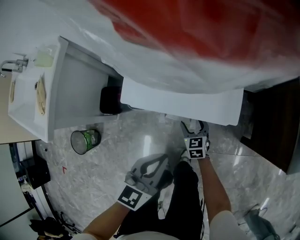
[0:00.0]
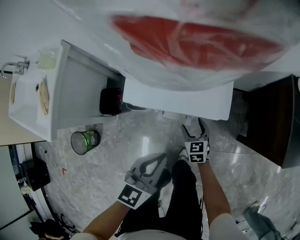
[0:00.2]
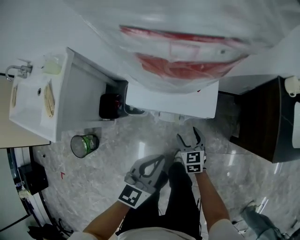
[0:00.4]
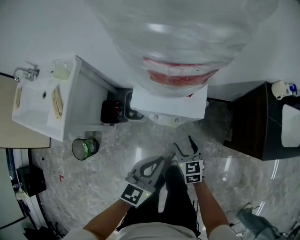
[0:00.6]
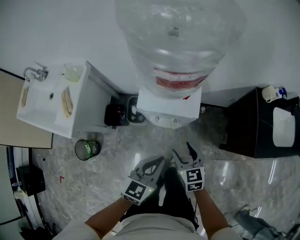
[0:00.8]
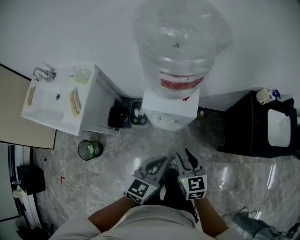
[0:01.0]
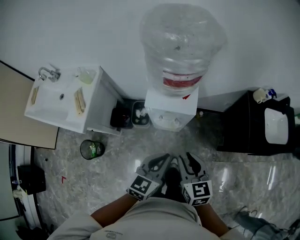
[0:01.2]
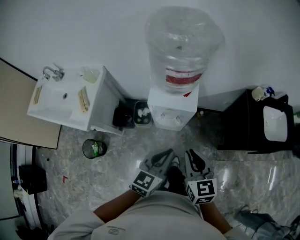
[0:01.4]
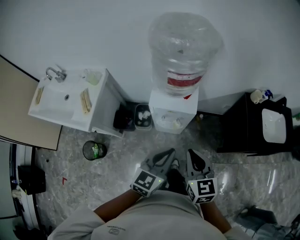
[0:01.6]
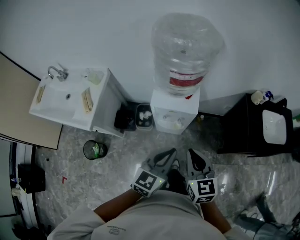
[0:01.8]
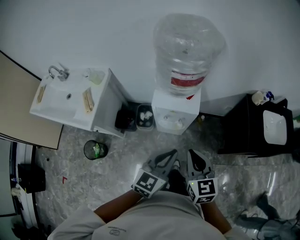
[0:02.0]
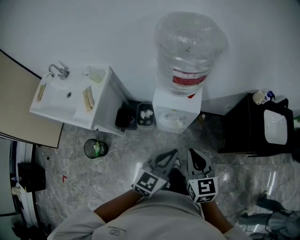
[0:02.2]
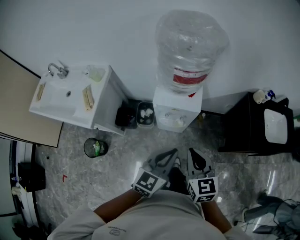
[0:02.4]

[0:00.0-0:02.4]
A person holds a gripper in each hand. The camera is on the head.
0.0 to 1.2 s: The left gripper goes roughly 25 cm upward. The right gripper travels upward by about 50 cm, and closes its fingers.
1.2 to 2.4 s: The grippers both shift upward by some 5 cm. The right gripper closes up.

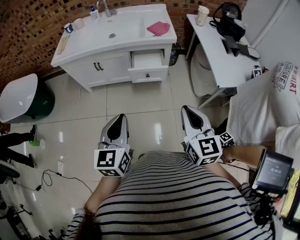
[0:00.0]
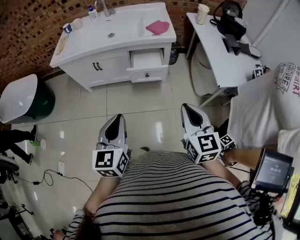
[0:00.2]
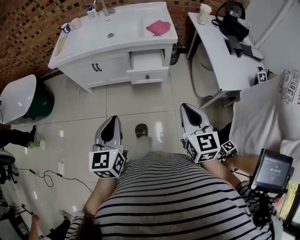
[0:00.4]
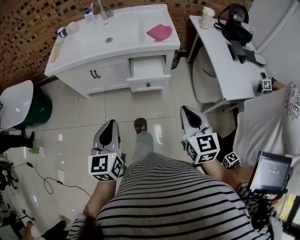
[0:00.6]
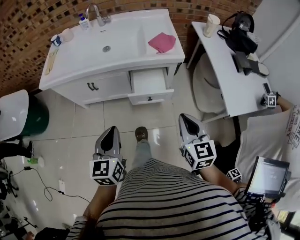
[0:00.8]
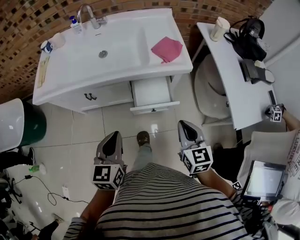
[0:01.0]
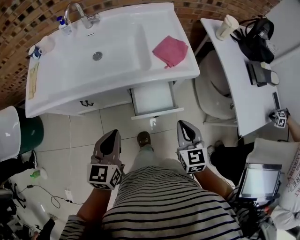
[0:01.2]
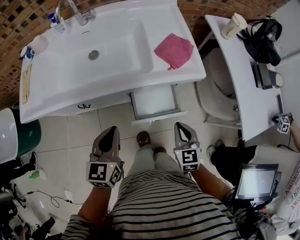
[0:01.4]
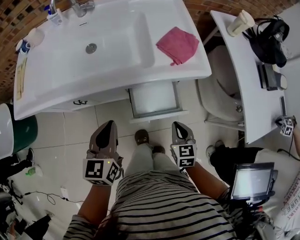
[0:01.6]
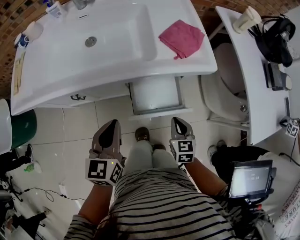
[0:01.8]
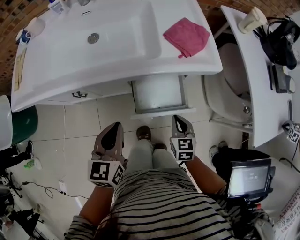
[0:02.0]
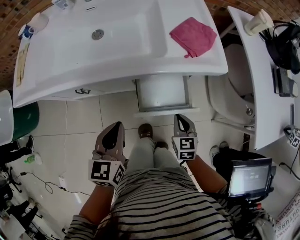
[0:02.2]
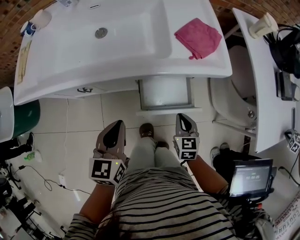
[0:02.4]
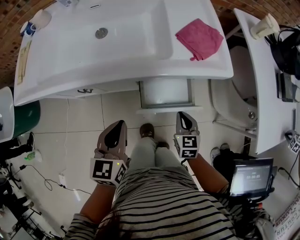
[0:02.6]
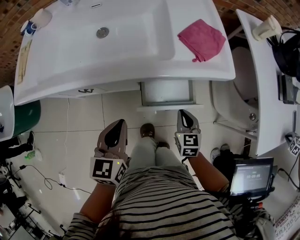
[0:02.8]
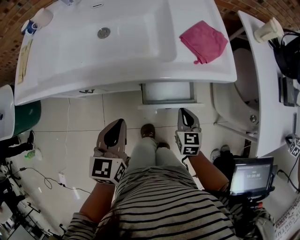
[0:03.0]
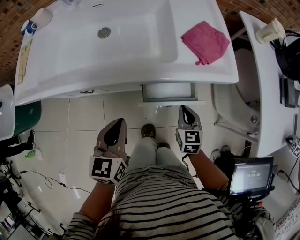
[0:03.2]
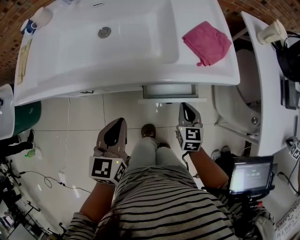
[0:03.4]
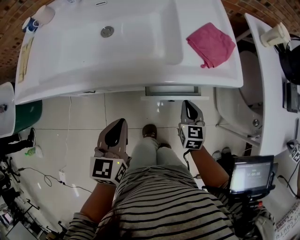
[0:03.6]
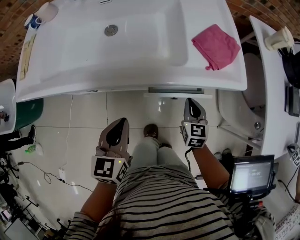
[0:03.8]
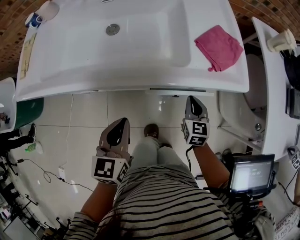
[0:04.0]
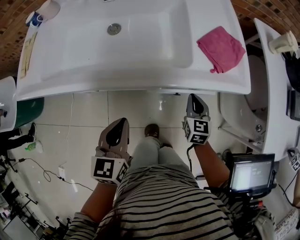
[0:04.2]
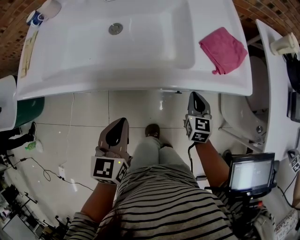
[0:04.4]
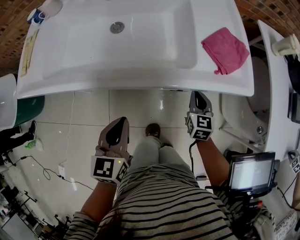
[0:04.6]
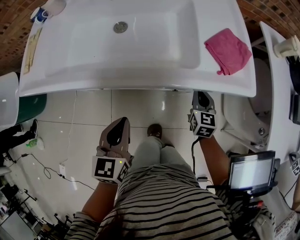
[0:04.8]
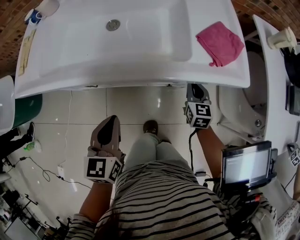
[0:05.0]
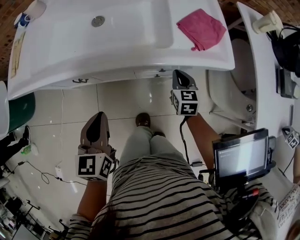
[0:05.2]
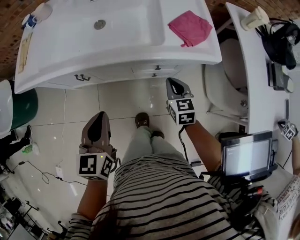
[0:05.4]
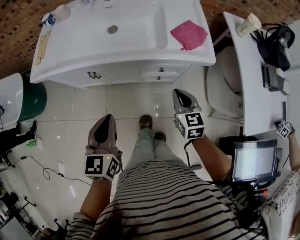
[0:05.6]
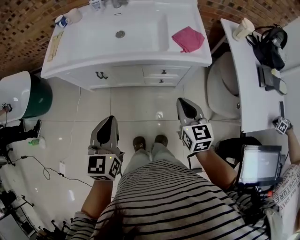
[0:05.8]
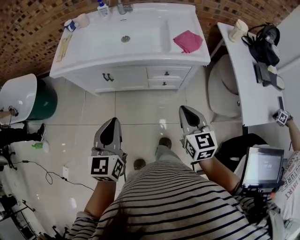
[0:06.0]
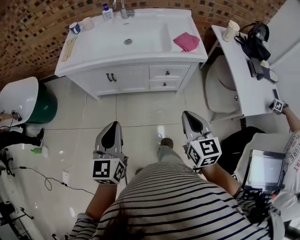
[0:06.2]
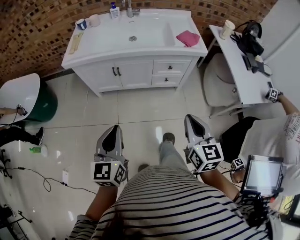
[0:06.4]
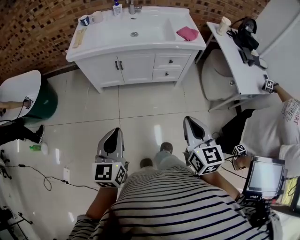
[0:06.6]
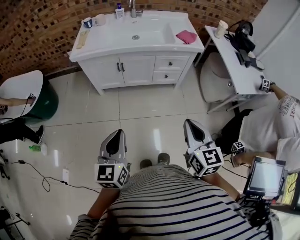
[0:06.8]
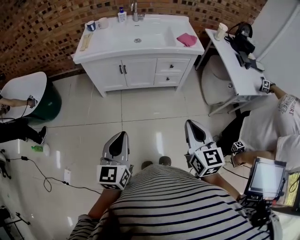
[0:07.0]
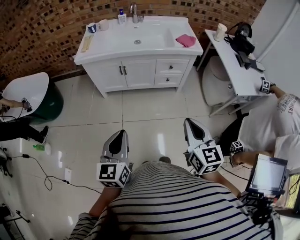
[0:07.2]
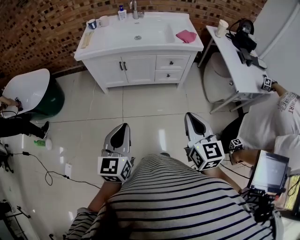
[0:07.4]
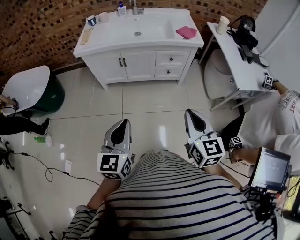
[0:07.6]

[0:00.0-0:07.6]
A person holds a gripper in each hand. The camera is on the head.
0.0 to 1.6 s: The two grippers go roughly 50 cm forward and downward. The right gripper swivels approximately 30 degrees.
1.6 to 3.0 s: The left gripper goes some 5 cm downward. Meanwhile the right gripper shifts some 10 cm forward and downward.
3.0 to 4.6 s: The right gripper heads forward, covering approximately 10 cm.
4.6 to 6.0 s: The grippers both shift backward and upward by approximately 35 cm.
6.0 to 7.6 s: The two grippers go some 30 cm backward.

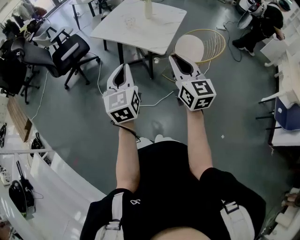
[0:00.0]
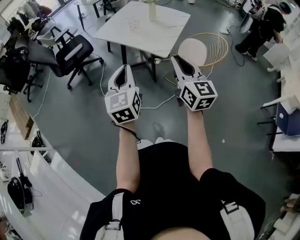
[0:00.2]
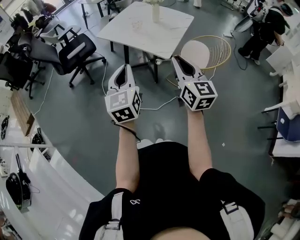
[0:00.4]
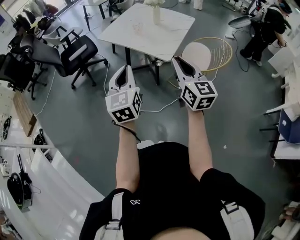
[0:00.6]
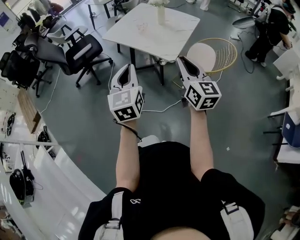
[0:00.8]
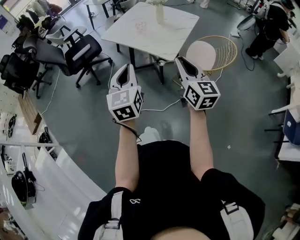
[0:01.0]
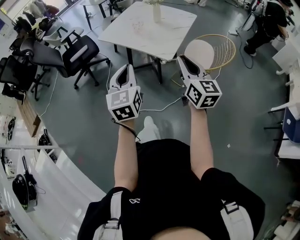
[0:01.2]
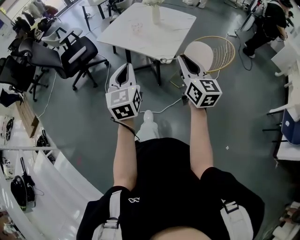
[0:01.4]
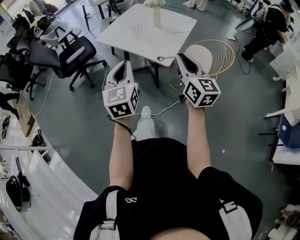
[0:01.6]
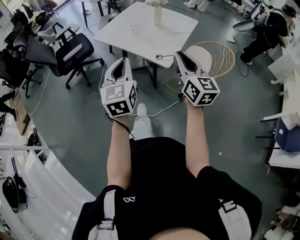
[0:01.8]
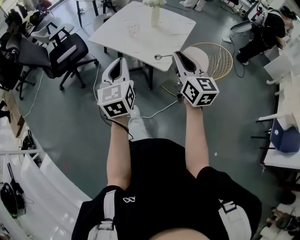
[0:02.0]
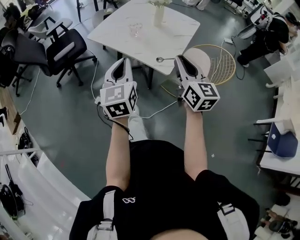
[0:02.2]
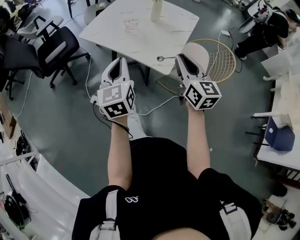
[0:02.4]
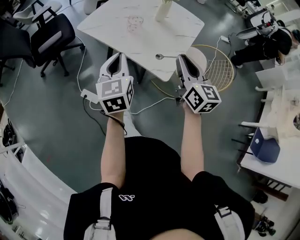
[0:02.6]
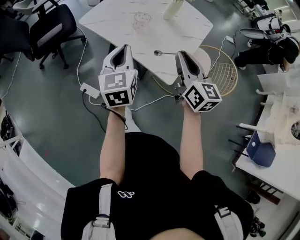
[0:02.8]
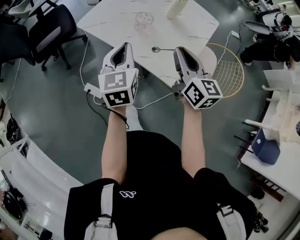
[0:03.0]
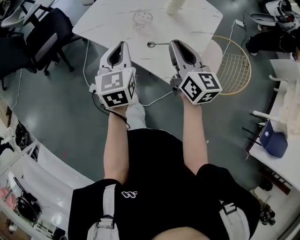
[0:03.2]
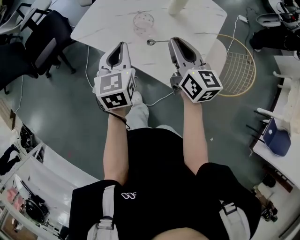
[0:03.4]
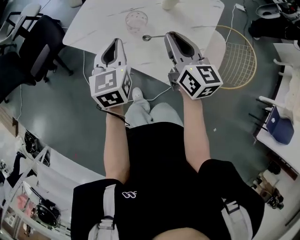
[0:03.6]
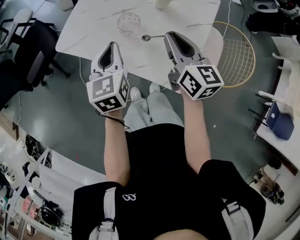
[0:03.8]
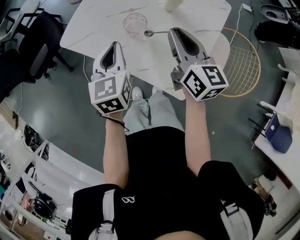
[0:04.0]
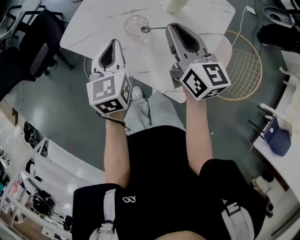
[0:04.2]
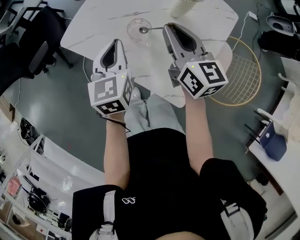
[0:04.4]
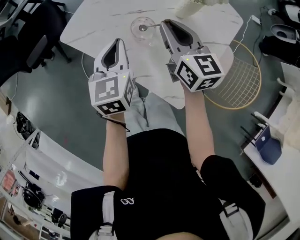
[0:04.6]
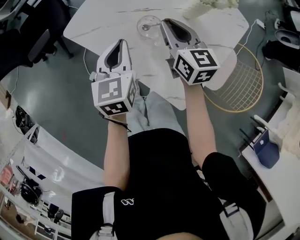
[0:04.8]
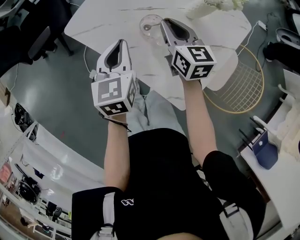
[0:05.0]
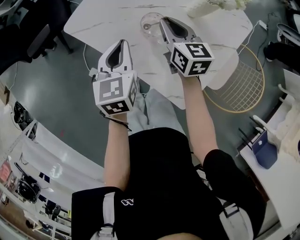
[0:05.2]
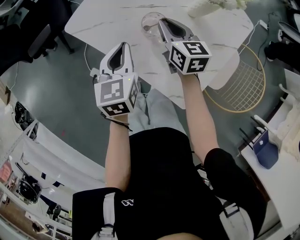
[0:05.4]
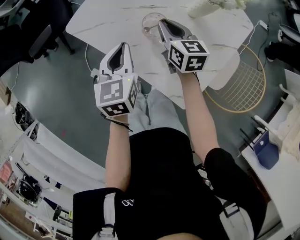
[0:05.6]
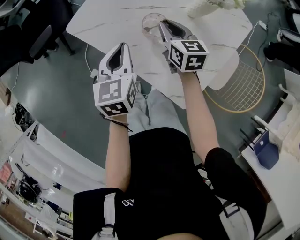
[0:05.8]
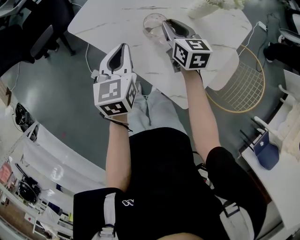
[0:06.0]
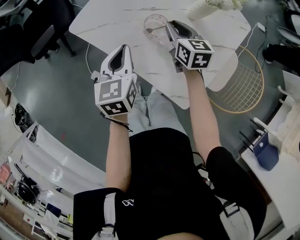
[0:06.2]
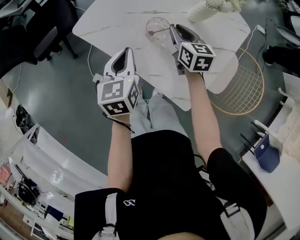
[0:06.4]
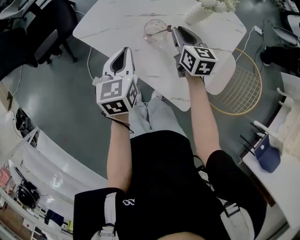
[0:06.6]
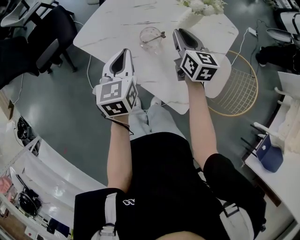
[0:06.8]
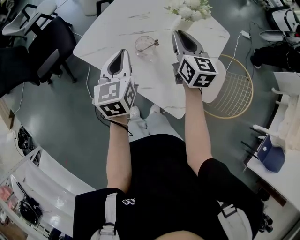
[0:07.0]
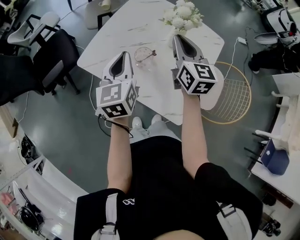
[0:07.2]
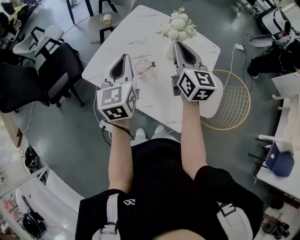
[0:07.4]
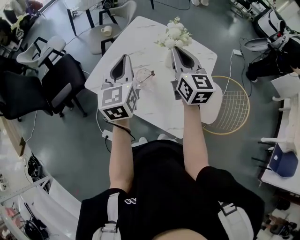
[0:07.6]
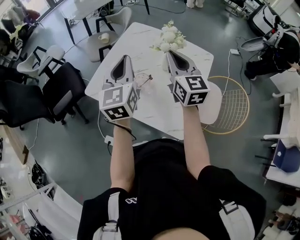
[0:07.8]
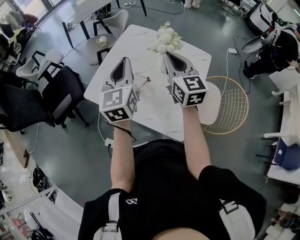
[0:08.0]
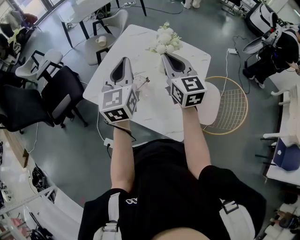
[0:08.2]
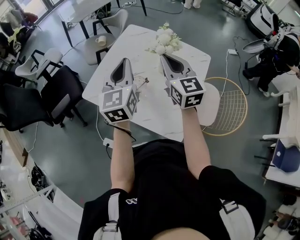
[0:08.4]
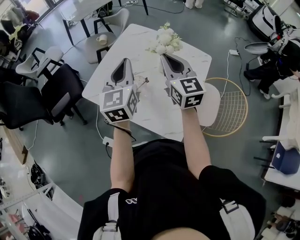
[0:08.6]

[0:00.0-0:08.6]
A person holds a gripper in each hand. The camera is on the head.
0.0 to 1.4 s: The left gripper shifts roughly 5 cm forward; the right gripper travels forward and to the right by roughly 10 cm.
1.4 to 2.8 s: The two grippers go roughly 30 cm forward.
2.8 to 4.4 s: Both grippers move forward, some 20 cm.
4.4 to 5.8 s: The left gripper ends up roughly 5 cm from where it was, while the right gripper moves downward, about 15 cm.
5.8 to 7.2 s: The left gripper goes some 15 cm upward. The right gripper heads upward, covering approximately 20 cm, and swivels roughly 30 degrees.
7.2 to 8.6 s: The left gripper moves upward and to the right, approximately 10 cm; the right gripper is displaced upward by some 5 cm.

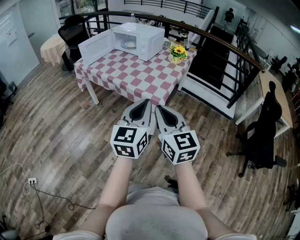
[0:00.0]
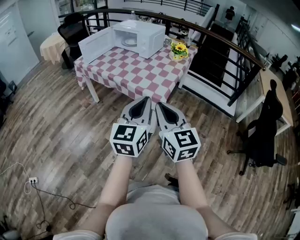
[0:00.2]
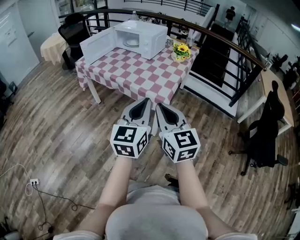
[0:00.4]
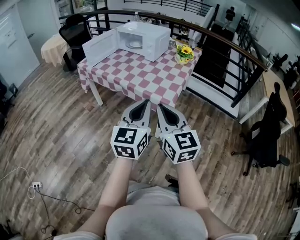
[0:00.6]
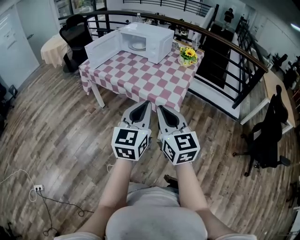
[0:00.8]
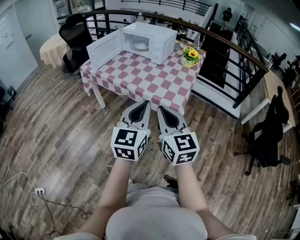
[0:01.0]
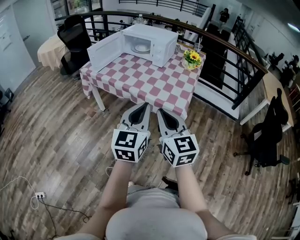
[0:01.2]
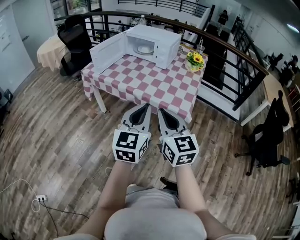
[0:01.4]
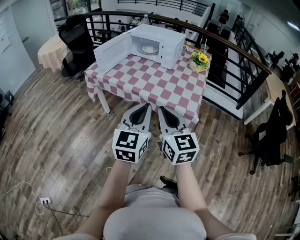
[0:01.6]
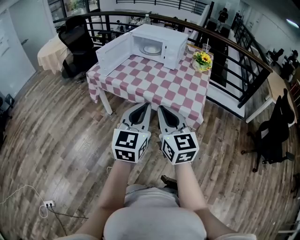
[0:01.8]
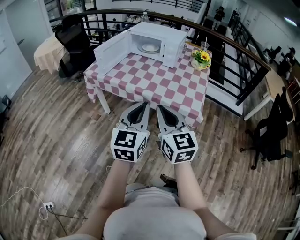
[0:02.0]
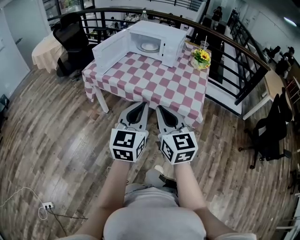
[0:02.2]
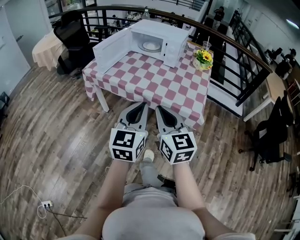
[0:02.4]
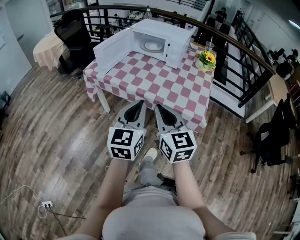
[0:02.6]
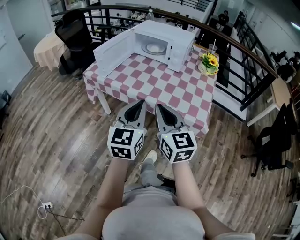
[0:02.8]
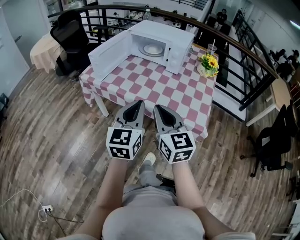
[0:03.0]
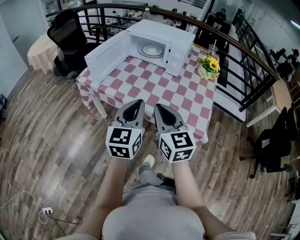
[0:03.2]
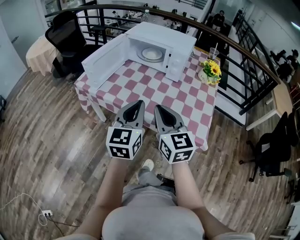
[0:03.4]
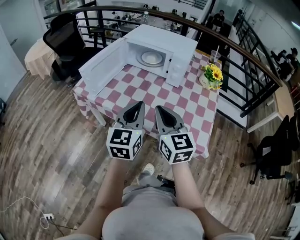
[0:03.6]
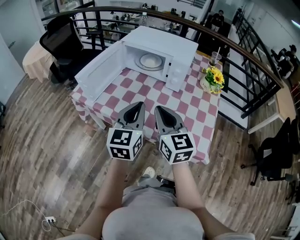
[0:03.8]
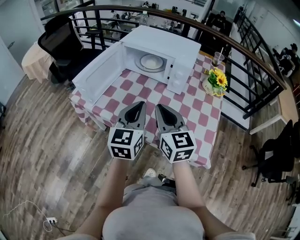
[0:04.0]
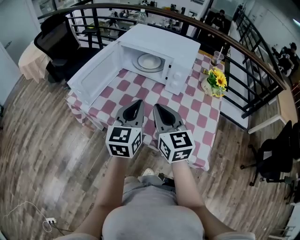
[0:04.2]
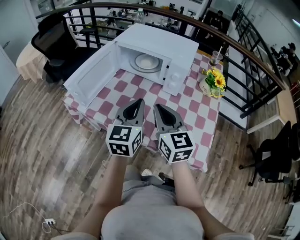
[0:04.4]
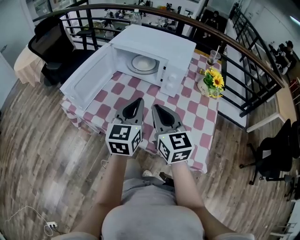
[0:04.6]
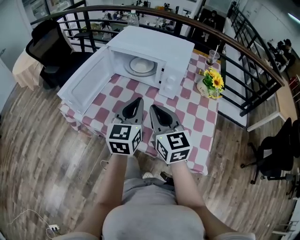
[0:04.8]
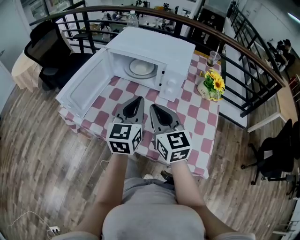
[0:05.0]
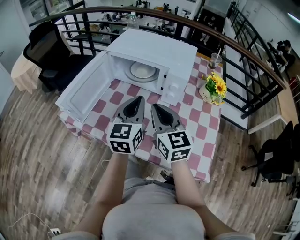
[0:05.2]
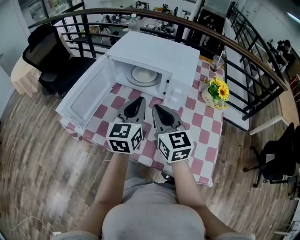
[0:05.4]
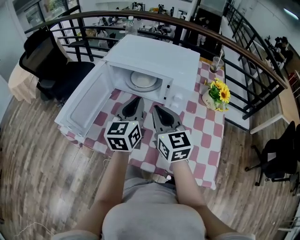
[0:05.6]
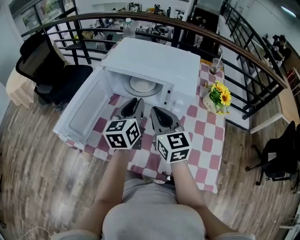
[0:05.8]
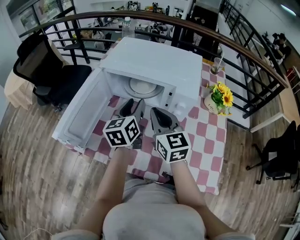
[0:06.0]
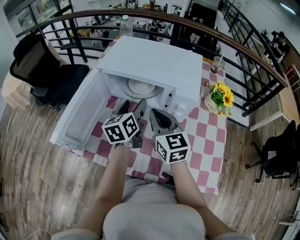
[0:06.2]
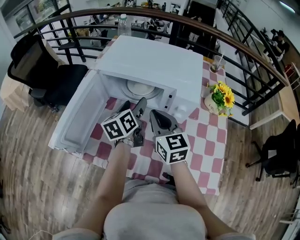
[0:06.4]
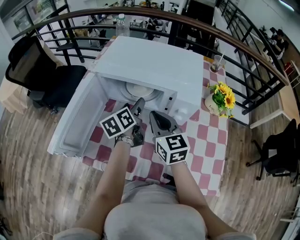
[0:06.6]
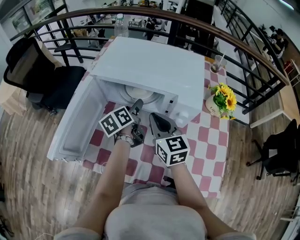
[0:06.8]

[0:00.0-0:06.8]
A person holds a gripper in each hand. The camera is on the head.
0.0 to 1.4 s: The grippers both shift to the left and forward by roughly 20 cm.
1.4 to 2.8 s: Both grippers move forward and to the left, roughly 15 cm.
2.8 to 4.0 s: The grippers both shift forward by approximately 25 cm.
4.0 to 5.4 s: Both grippers move forward, some 15 cm.
5.4 to 6.8 s: The right gripper travels forward and downward by approximately 15 cm; the left gripper travels forward and downward by some 25 cm, rolls counterclockwise, seen from behind, by about 40 degrees, and opens its fingers.
